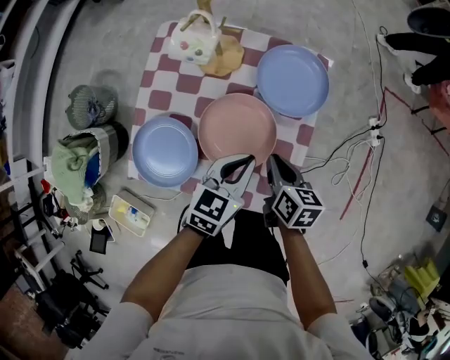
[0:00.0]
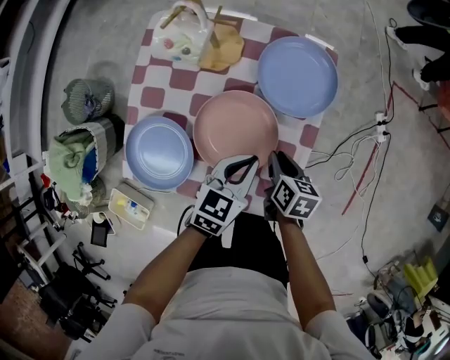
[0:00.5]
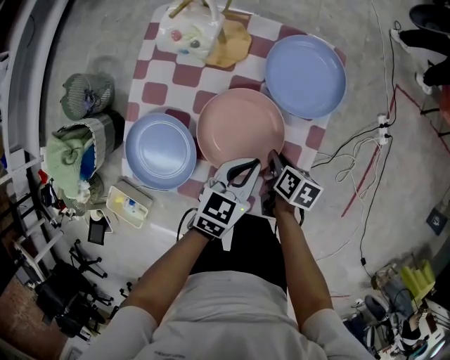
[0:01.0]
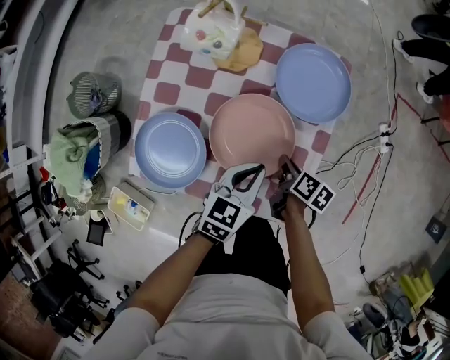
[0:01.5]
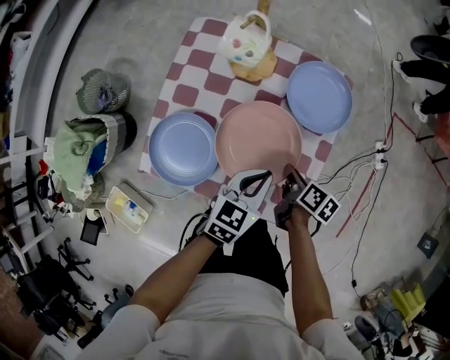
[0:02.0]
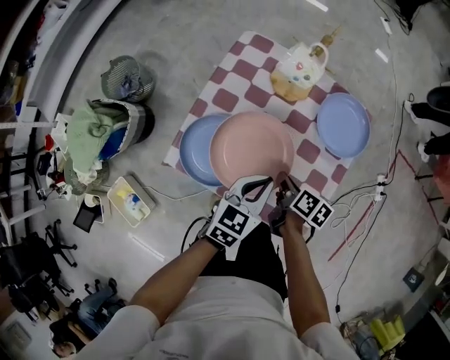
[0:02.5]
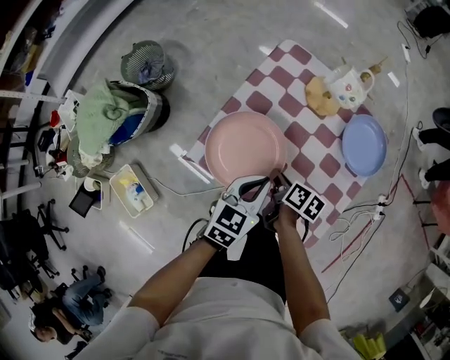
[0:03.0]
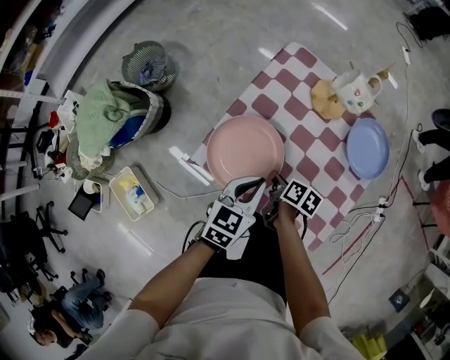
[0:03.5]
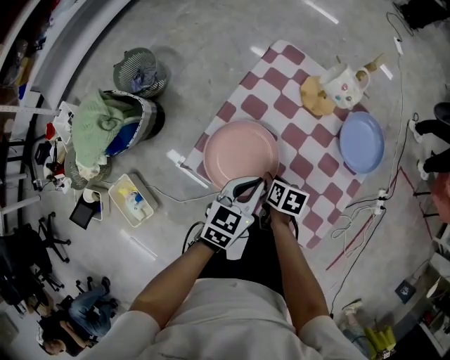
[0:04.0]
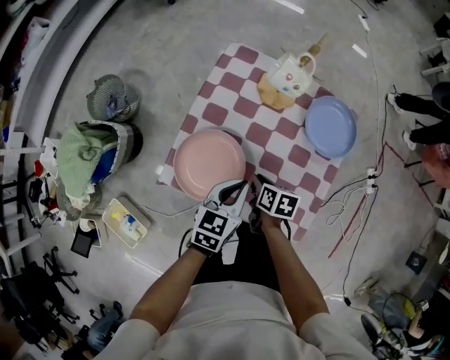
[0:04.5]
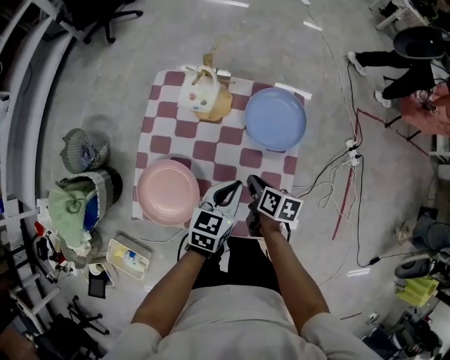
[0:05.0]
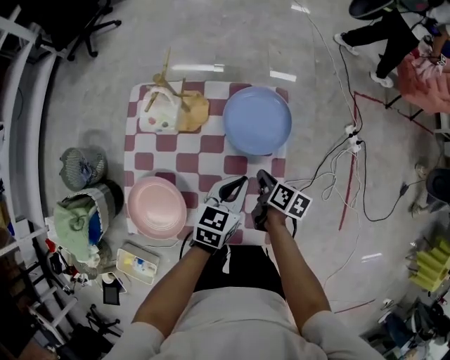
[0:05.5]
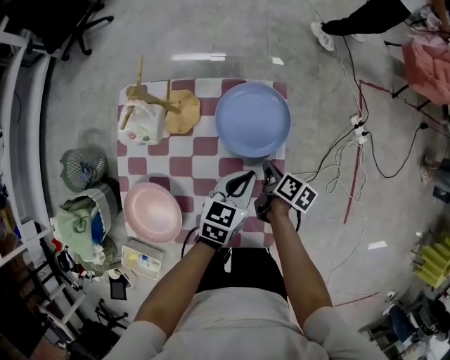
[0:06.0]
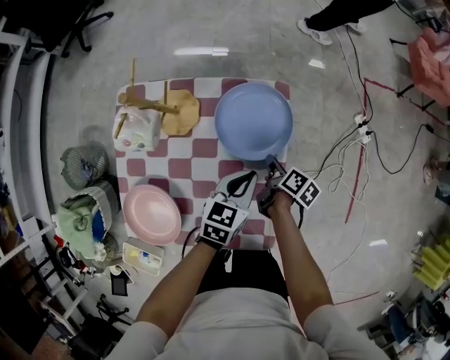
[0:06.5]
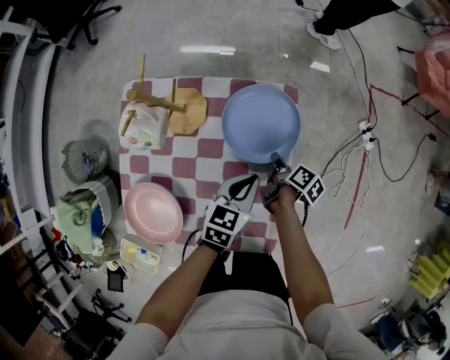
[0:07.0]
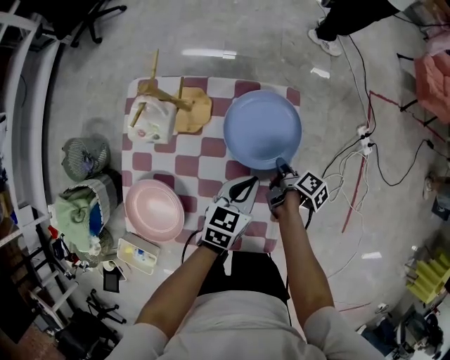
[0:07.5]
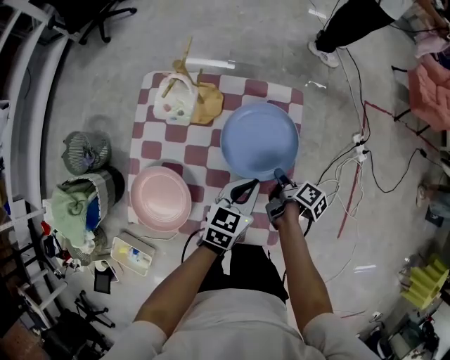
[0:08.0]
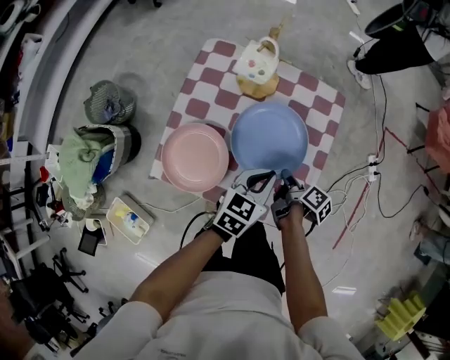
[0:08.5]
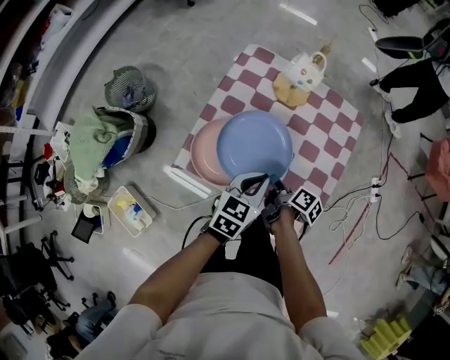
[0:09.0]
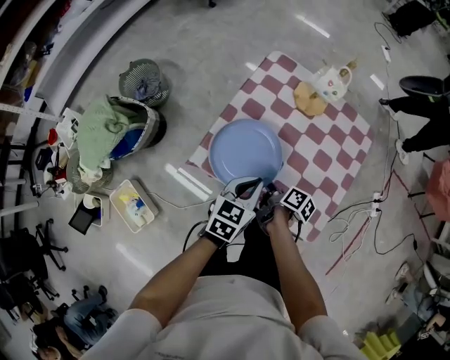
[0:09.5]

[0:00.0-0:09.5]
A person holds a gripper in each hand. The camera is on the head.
0:00.0 to 0:02.0: The right gripper travels downward by about 5 cm, and rotates approximately 20 degrees.
0:02.0 to 0:04.0: Both grippers travel together to the left, approximately 20 cm. The right gripper turns by some 40 degrees.
0:04.0 to 0:05.5: The right gripper moves some 30 cm, and turns by roughly 40 degrees, while the left gripper changes place by some 30 cm, and changes its angle by about 20 degrees.
0:05.5 to 0:07.5: The right gripper heads forward and downward, covering approximately 10 cm, and turns by some 30 degrees, while the left gripper ends up about 5 cm from where it was.
0:07.5 to 0:09.5: The right gripper moves some 40 cm, and changes its angle by approximately 30 degrees. The left gripper changes place by about 35 cm, and rotates approximately 20 degrees.

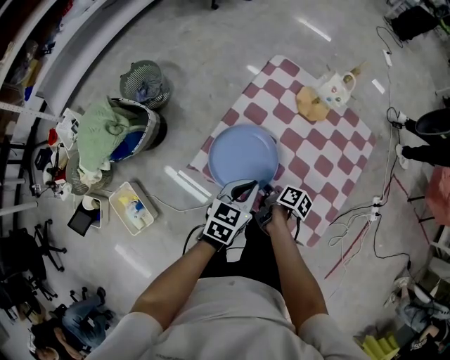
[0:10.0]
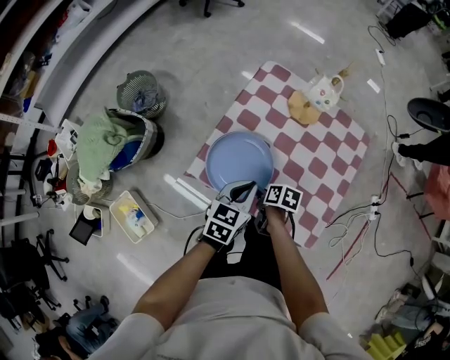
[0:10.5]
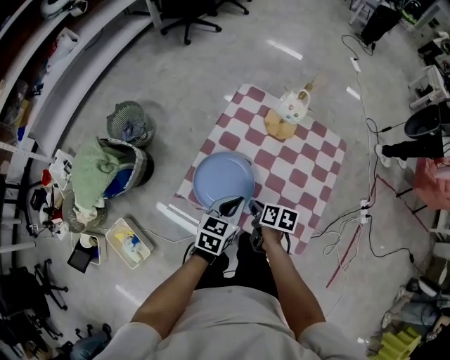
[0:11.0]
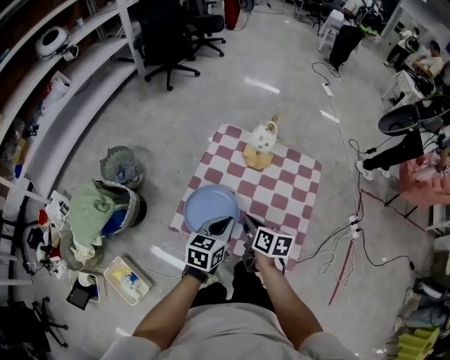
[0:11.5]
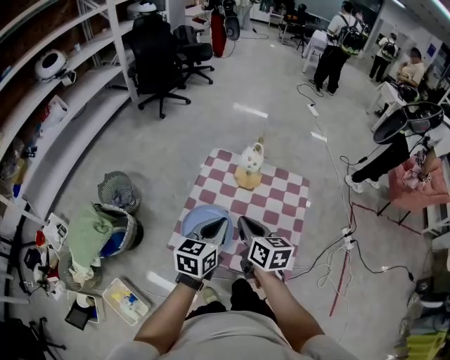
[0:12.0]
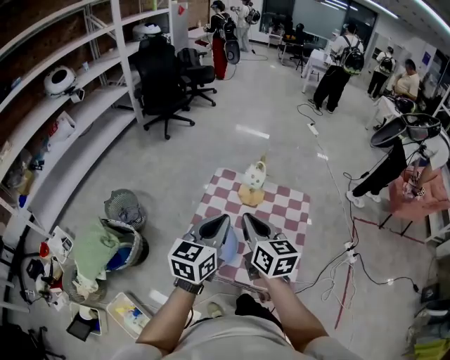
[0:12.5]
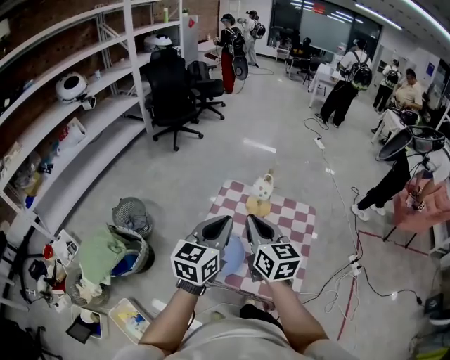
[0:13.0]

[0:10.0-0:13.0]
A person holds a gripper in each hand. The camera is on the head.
0:10.0 to 0:11.5: The left gripper shifts roughly 10 cm upward. The right gripper heads upward, covering approximately 20 cm, and swivels approximately 40 degrees.
0:11.5 to 0:13.0: Both grippers move upward, some 25 cm. The right gripper turns by roughly 40 degrees. The left gripper changes its angle by approximately 20 degrees.

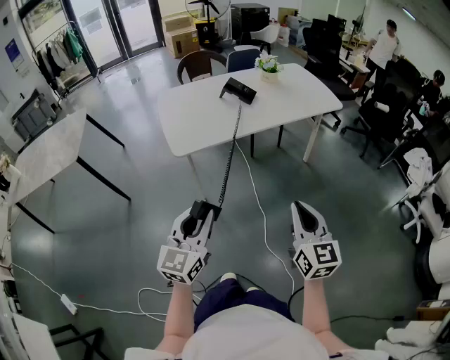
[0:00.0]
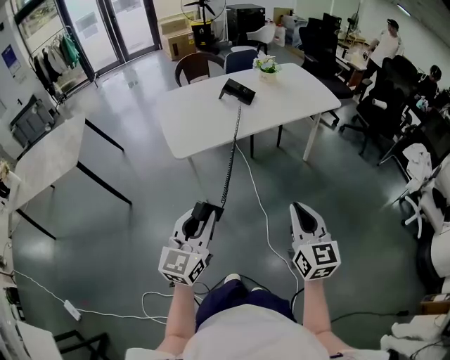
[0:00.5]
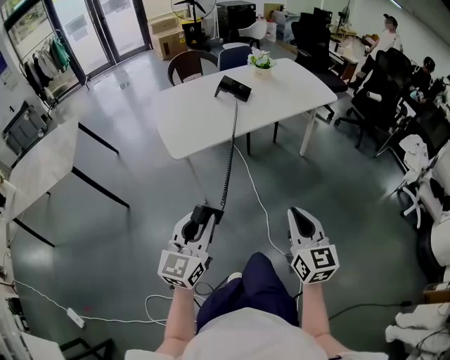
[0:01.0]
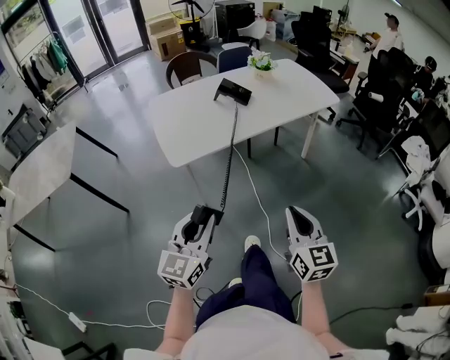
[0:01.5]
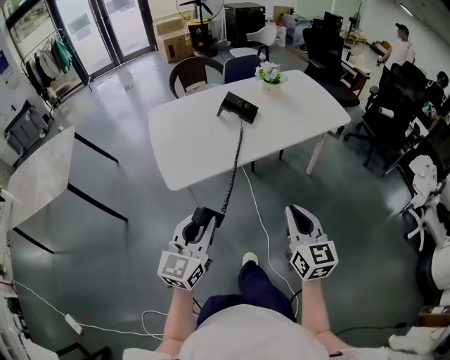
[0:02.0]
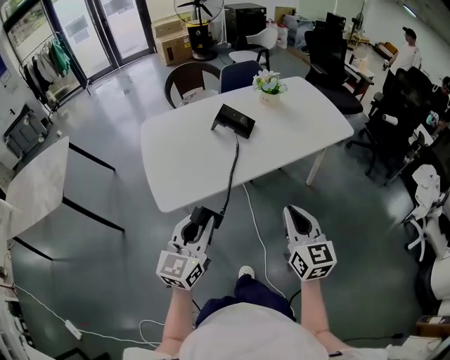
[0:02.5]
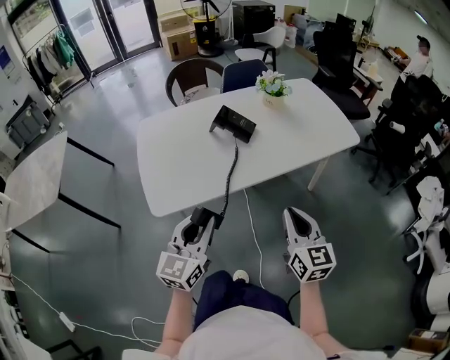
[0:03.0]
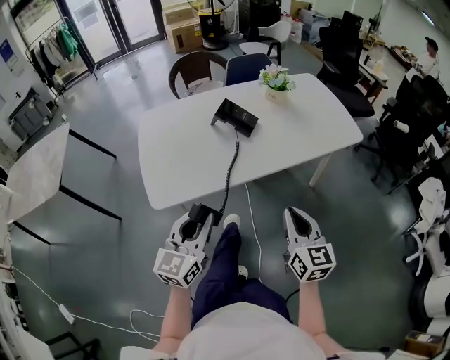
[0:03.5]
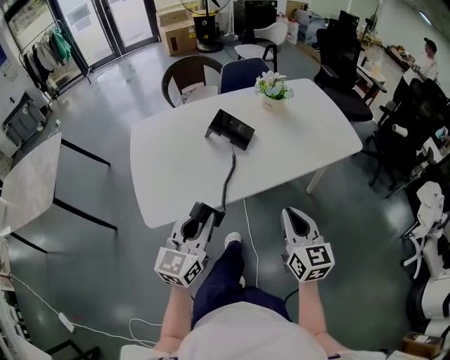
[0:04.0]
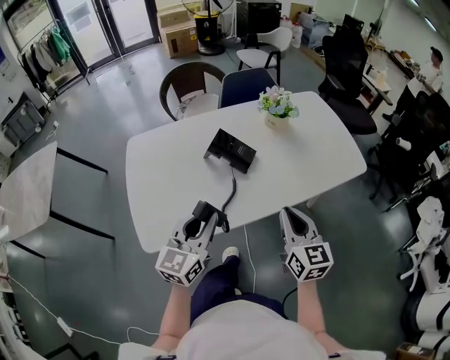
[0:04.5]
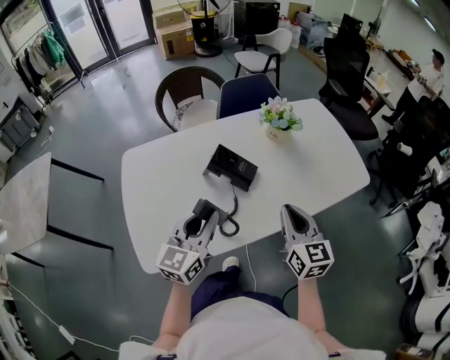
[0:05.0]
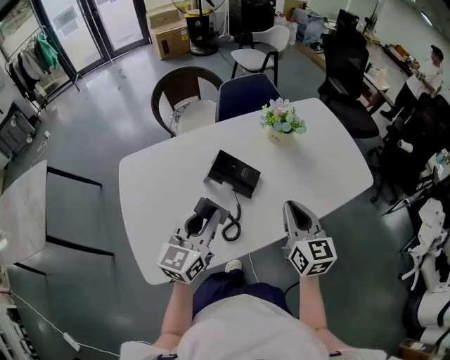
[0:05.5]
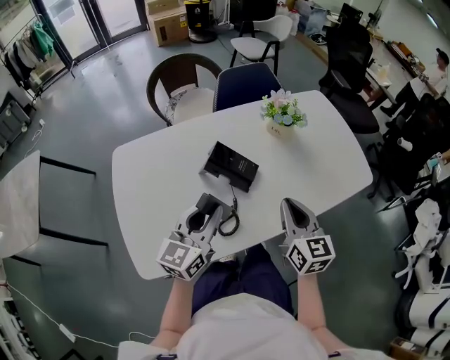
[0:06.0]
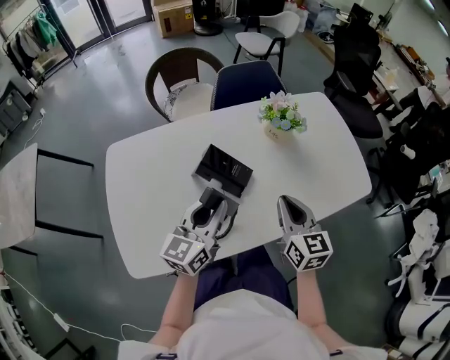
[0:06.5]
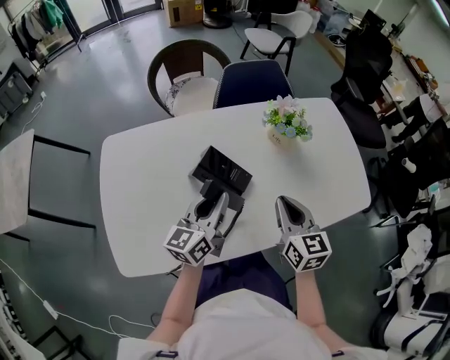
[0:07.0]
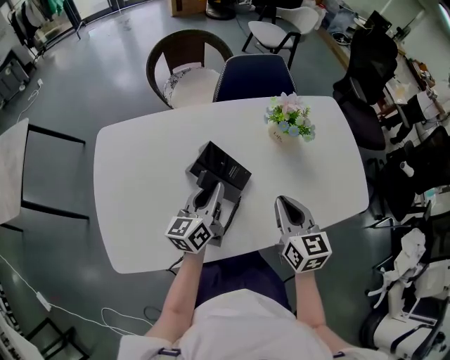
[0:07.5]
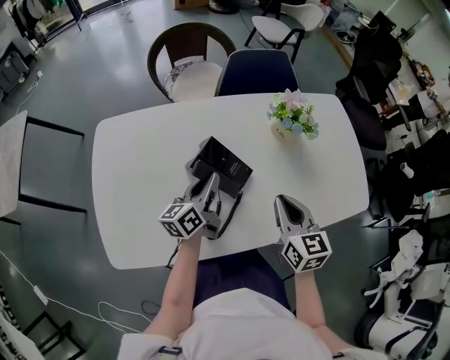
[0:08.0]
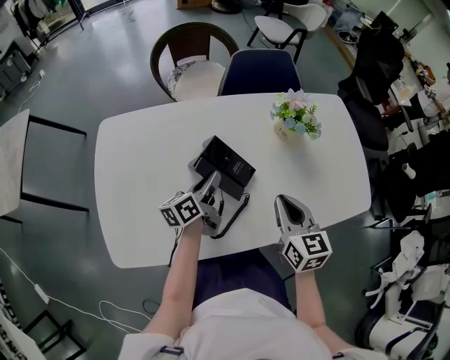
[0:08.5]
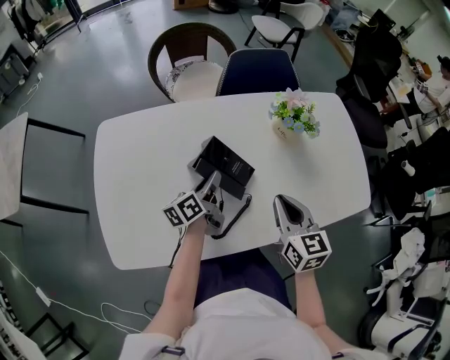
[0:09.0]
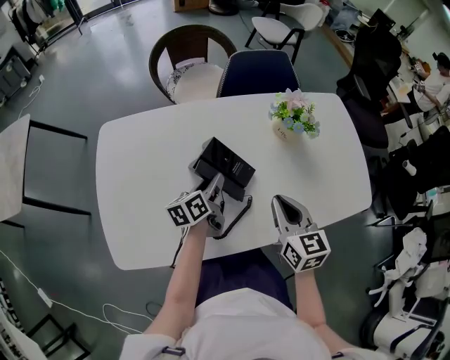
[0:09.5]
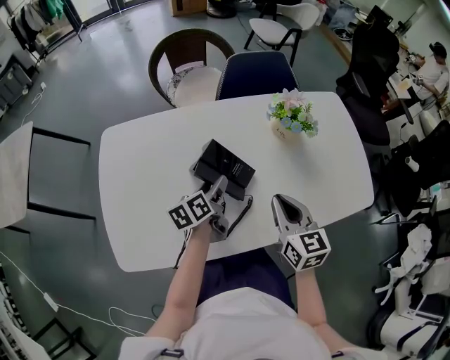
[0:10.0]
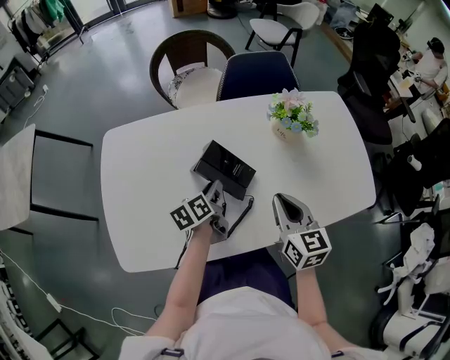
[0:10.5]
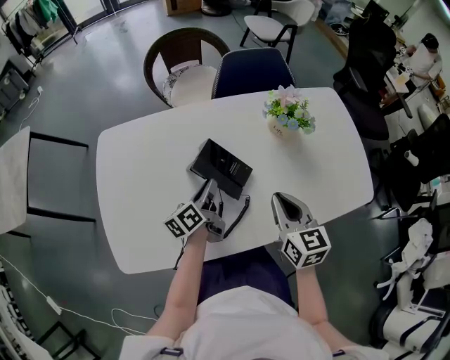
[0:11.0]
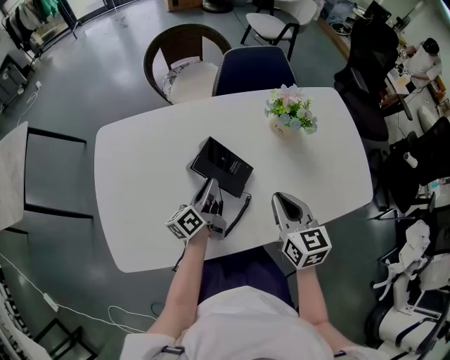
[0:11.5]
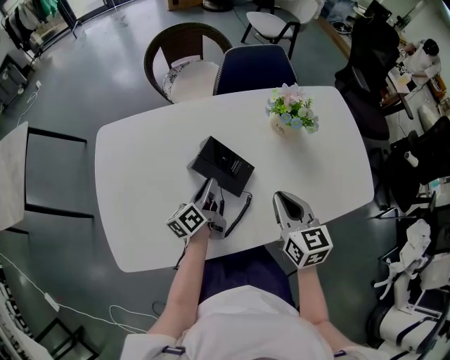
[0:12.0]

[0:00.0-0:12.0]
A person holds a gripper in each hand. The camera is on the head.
0:00.0 to 0:02.0: The two grippers go some 15 cm forward.
0:02.0 to 0:04.0: The grippers both shift forward by about 20 cm.
0:04.0 to 0:06.0: Both grippers travel together forward, some 25 cm.
0:06.0 to 0:08.0: The right gripper moves forward, some 10 cm. The left gripper heads forward and downward, covering some 20 cm, and swivels roughly 40 degrees.
0:08.0 to 0:10.0: The left gripper changes its angle by approximately 20 degrees, and opens up.
0:10.0 to 0:12.0: The left gripper closes up.

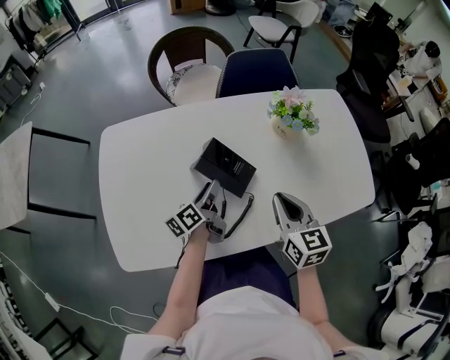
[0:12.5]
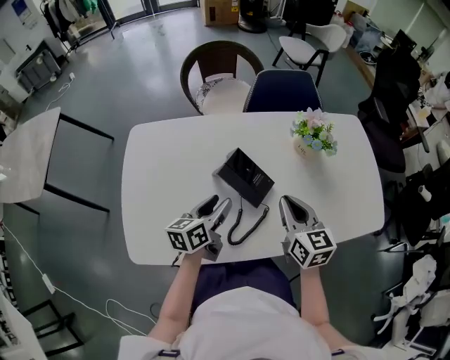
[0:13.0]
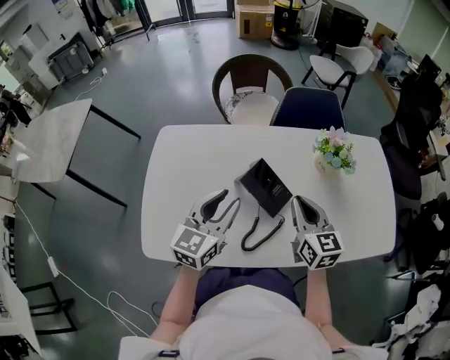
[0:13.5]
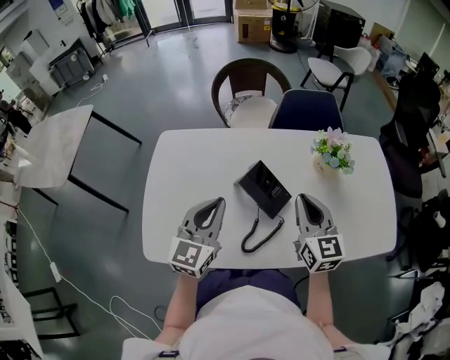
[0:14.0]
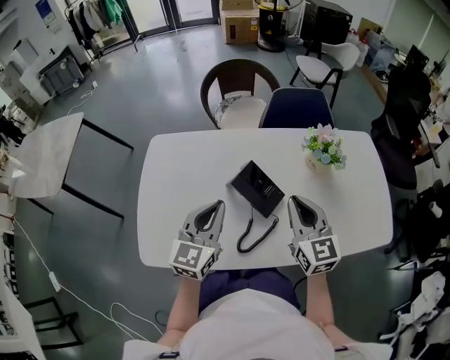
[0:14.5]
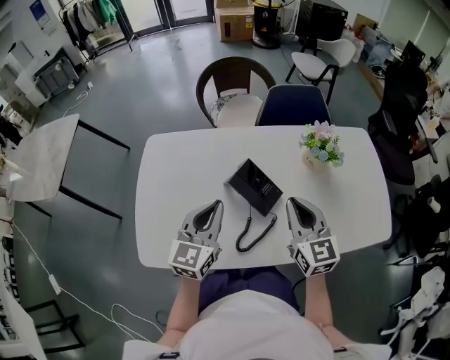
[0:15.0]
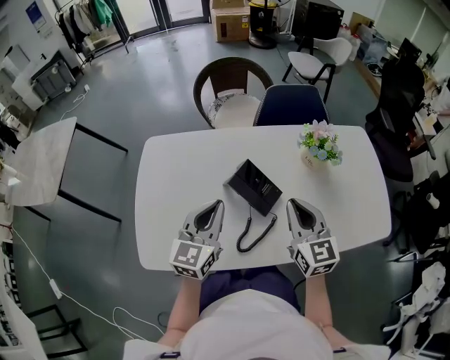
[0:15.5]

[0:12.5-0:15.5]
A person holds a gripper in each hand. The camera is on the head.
0:12.5 to 0:14.0: The left gripper shifts roughly 20 cm upward, rolls clockwise, seen from behind, by some 70 degrees, and closes; the right gripper moves upward, approximately 5 cm.
0:14.0 to 0:15.5: The grippers move only a little.
